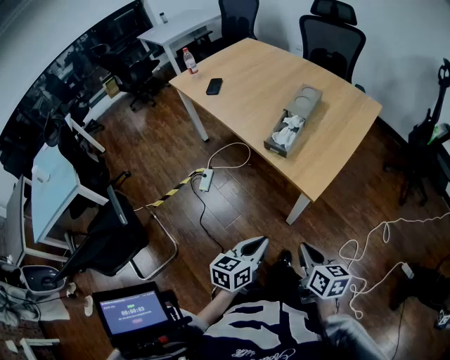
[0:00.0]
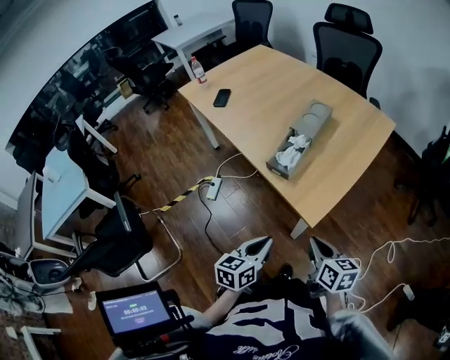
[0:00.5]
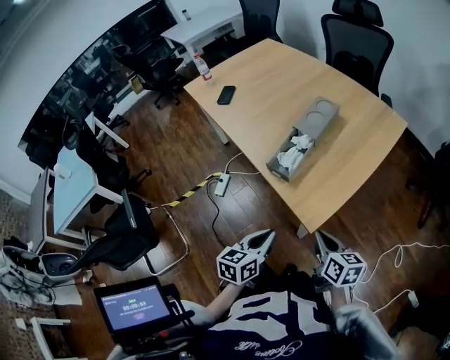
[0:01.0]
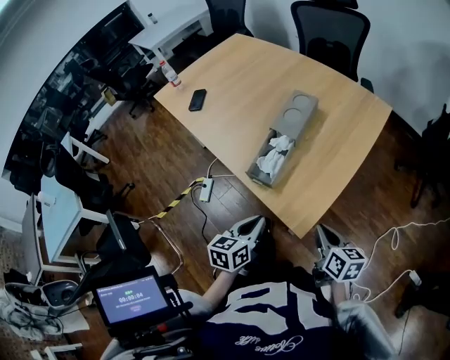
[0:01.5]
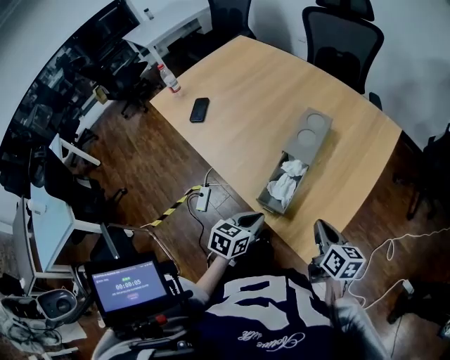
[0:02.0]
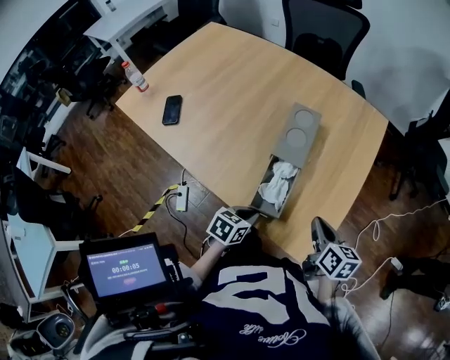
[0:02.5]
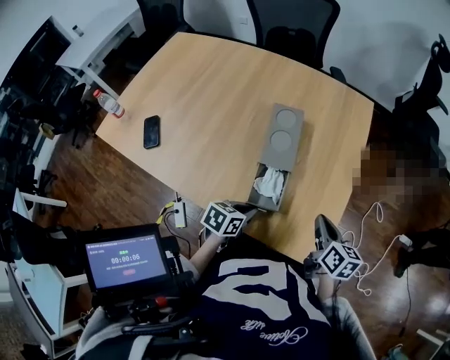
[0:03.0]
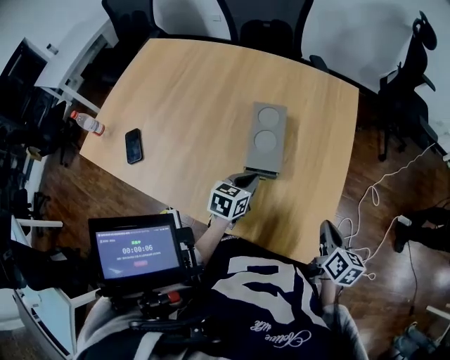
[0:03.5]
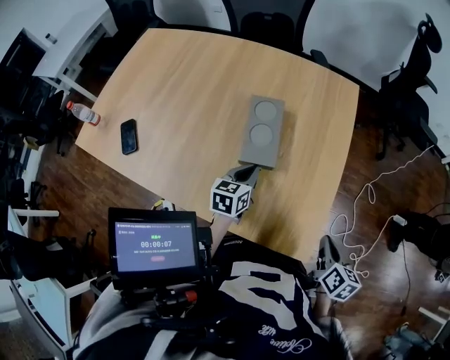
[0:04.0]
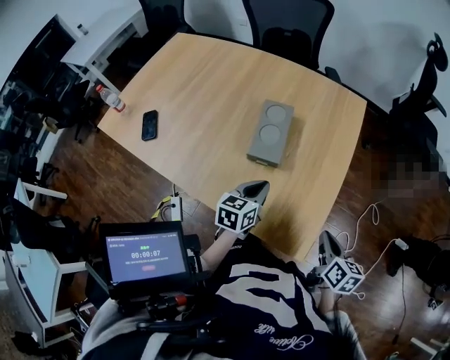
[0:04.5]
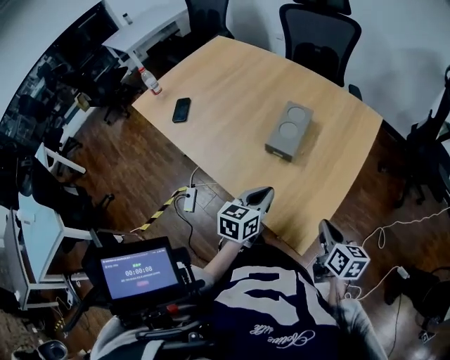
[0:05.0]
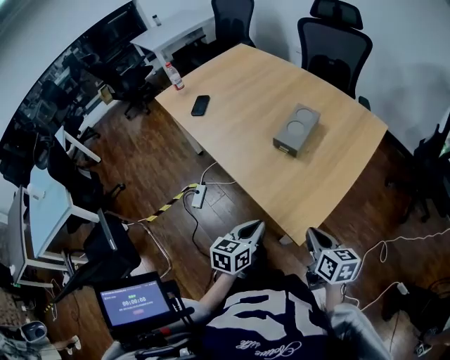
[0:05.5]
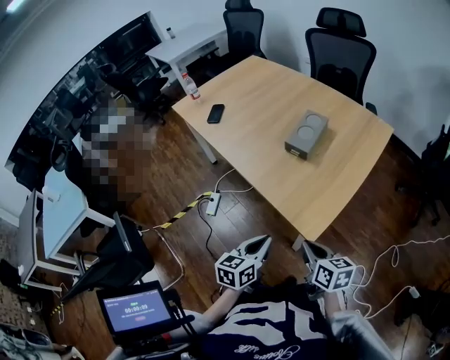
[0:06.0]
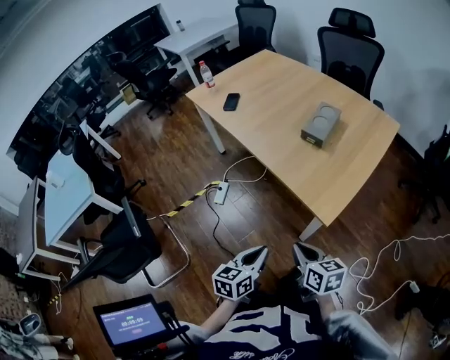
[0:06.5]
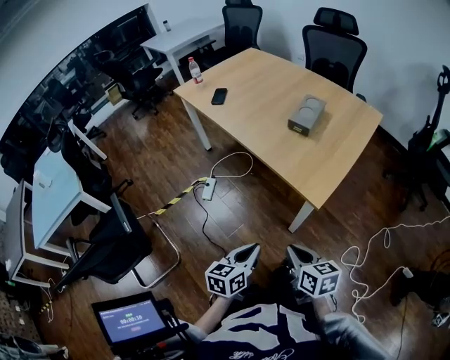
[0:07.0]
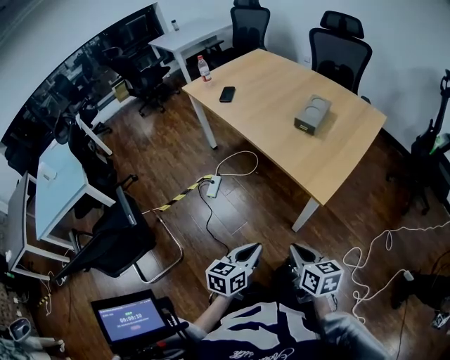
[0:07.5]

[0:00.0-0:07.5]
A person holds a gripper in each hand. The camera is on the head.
0:00.0 to 0:02.0: The grippers both shift forward by about 35 cm.
0:02.0 to 0:04.0: The right gripper shifts by approximately 10 cm, and turns by about 40 degrees. Meanwhile the left gripper ends up about 25 cm from where it was.
0:04.0 to 0:05.5: The left gripper ends up some 30 cm from where it was, and swivels roughly 30 degrees. Meanwhile the right gripper ends up about 10 cm from where it was, and changes its angle by roughly 50 degrees.
0:05.5 to 0:07.5: The grippers both shift backward and to the left by roughly 30 cm.

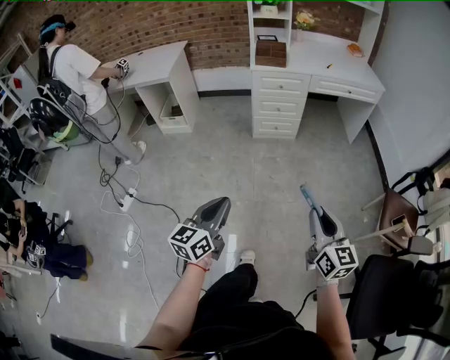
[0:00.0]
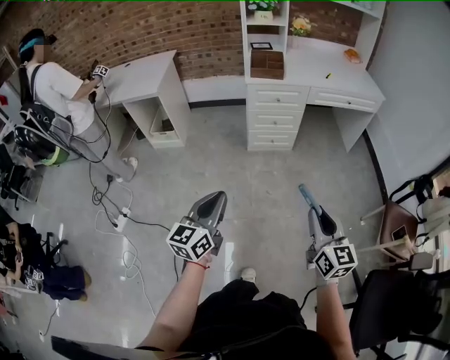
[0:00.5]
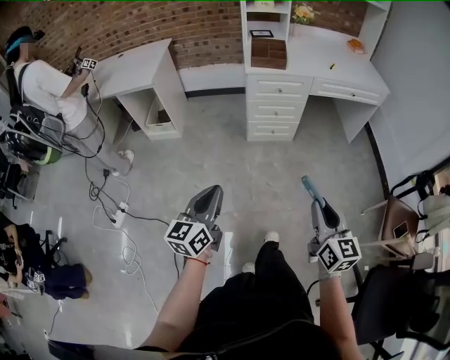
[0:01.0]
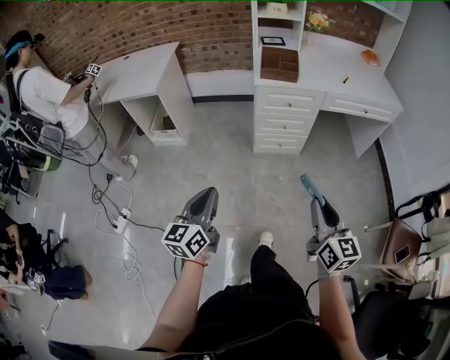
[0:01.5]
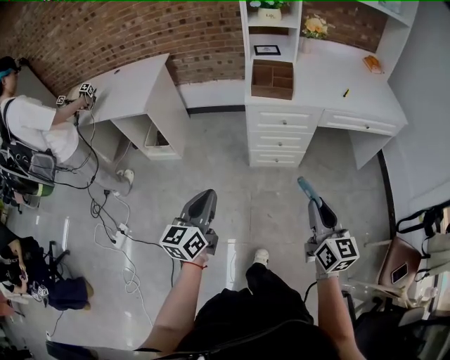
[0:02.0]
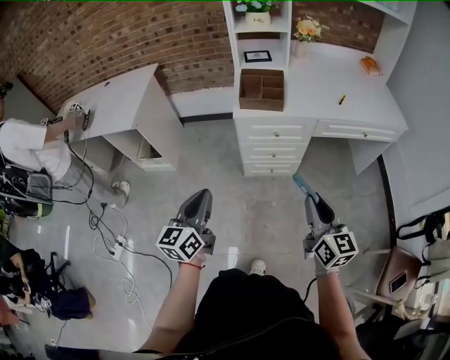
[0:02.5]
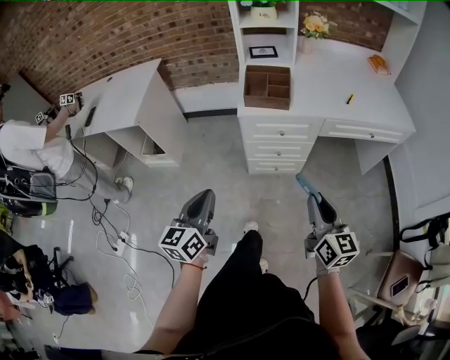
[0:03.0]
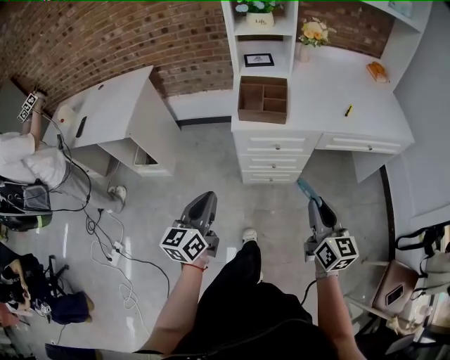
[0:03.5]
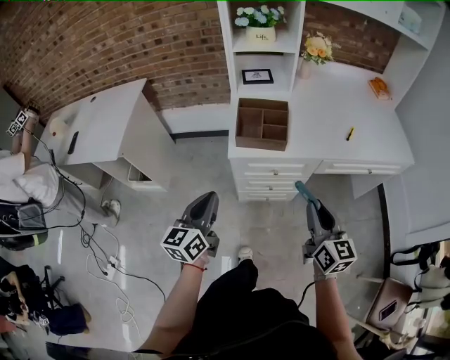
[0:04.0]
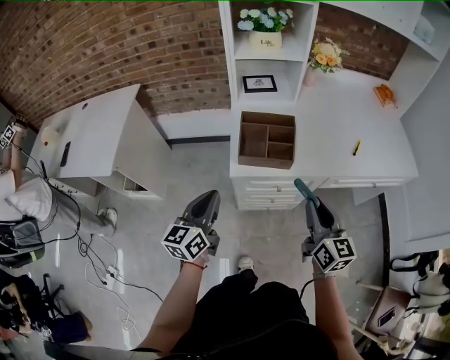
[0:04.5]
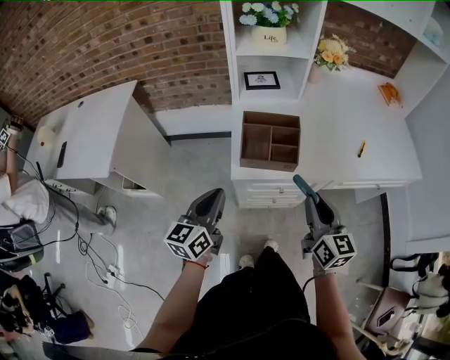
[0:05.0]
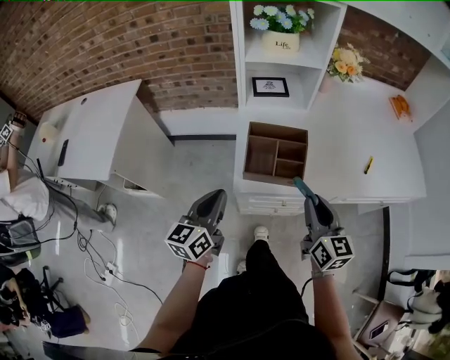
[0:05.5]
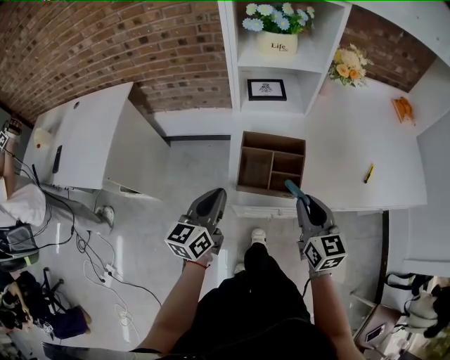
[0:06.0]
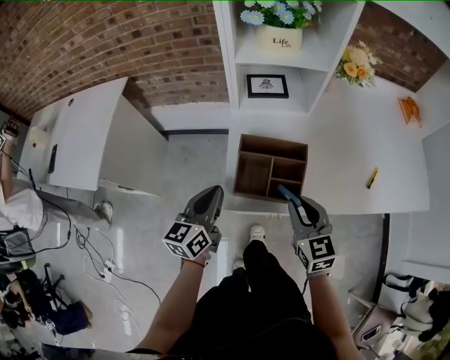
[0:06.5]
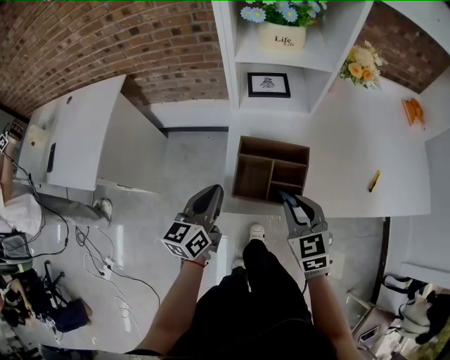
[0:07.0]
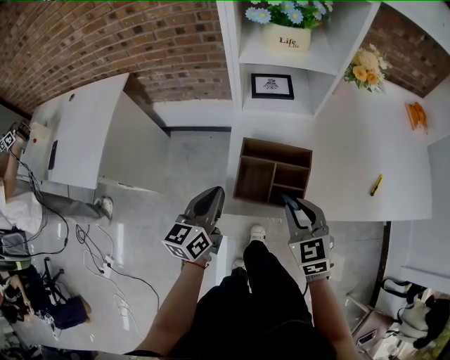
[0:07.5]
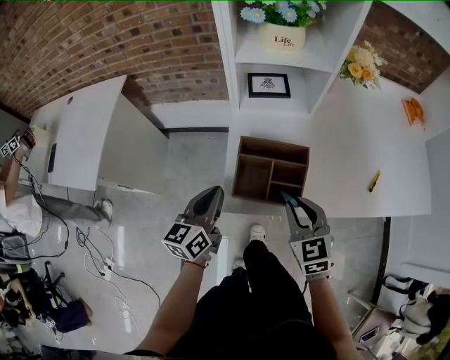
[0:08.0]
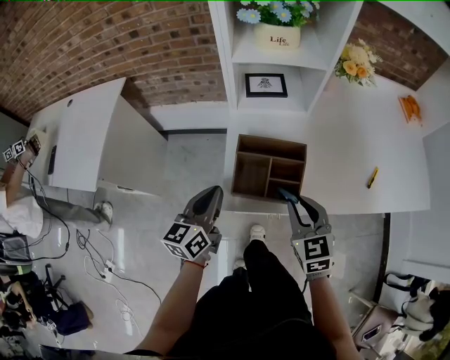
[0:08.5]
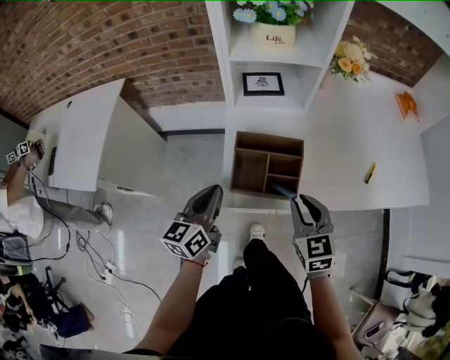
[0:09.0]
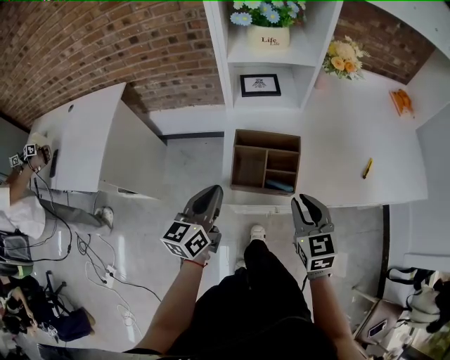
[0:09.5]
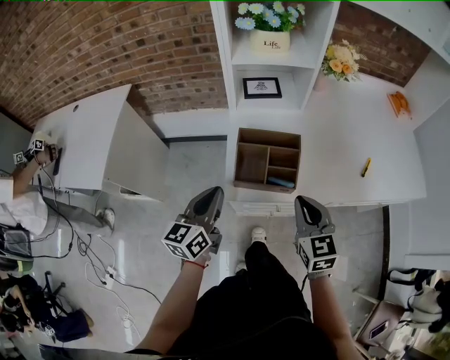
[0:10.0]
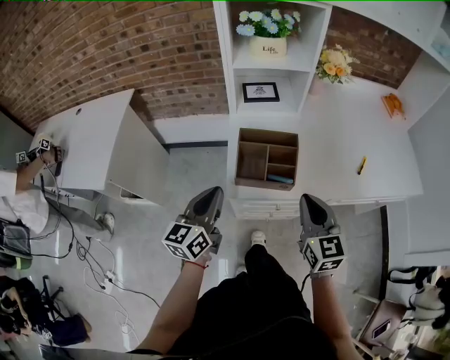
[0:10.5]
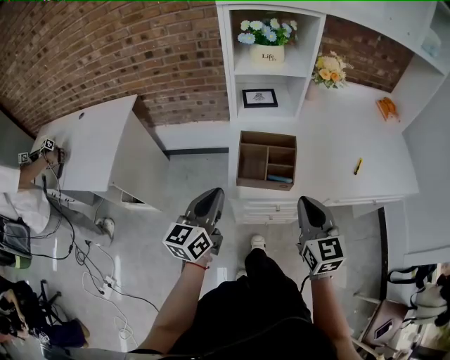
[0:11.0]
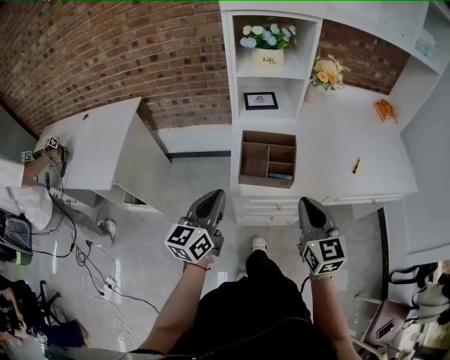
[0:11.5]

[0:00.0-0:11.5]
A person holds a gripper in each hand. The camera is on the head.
0:00.0 to 0:02.0: Both grippers travel together forward, some 40 cm.
0:02.0 to 0:04.0: The grippers both shift forward by some 30 cm.
0:04.0 to 0:06.0: Both grippers travel together forward, approximately 20 cm.
0:06.0 to 0:07.5: The left gripper shifts by roughly 5 cm, while the right gripper ends up approximately 5 cm from where it was, and turns by about 30 degrees.
0:07.5 to 0:09.5: The right gripper changes place by roughly 5 cm.
0:09.5 to 0:11.5: The grippers both shift backward and upward by roughly 10 cm.

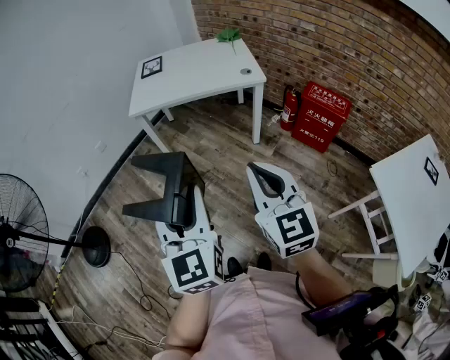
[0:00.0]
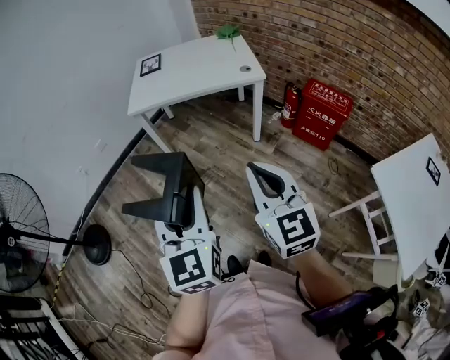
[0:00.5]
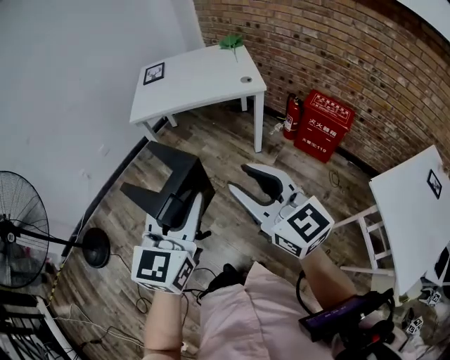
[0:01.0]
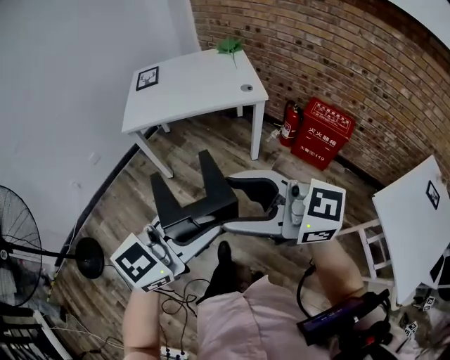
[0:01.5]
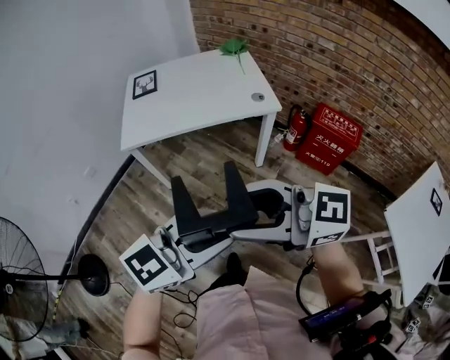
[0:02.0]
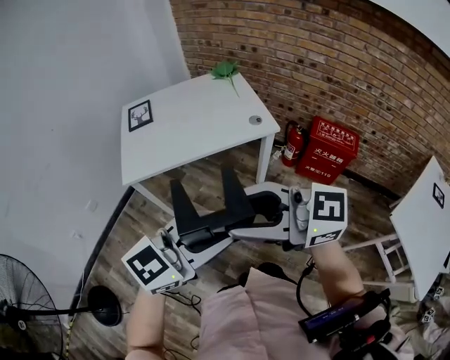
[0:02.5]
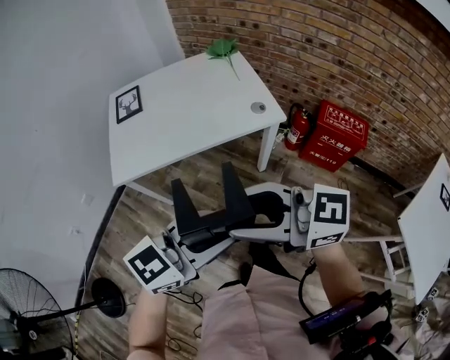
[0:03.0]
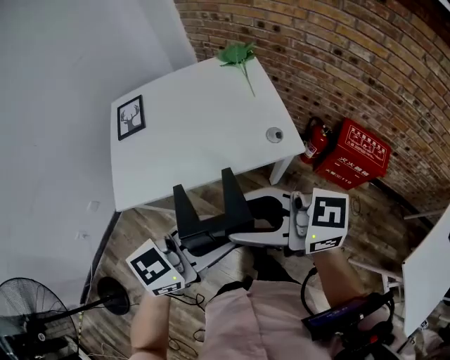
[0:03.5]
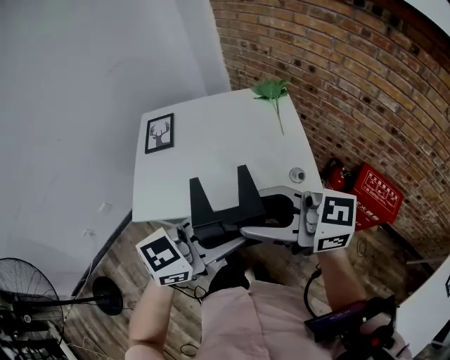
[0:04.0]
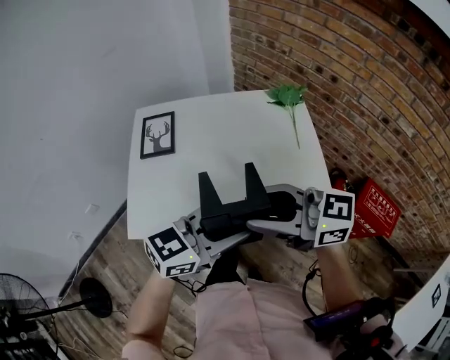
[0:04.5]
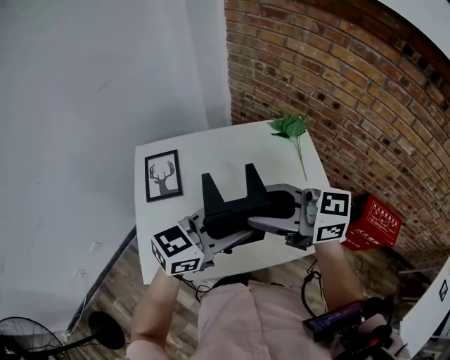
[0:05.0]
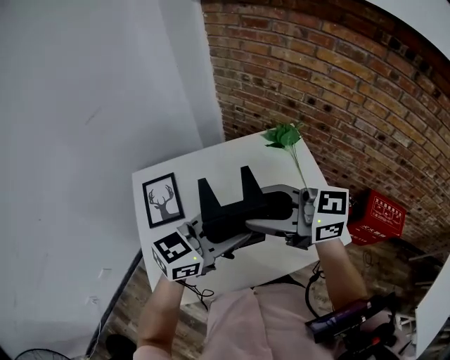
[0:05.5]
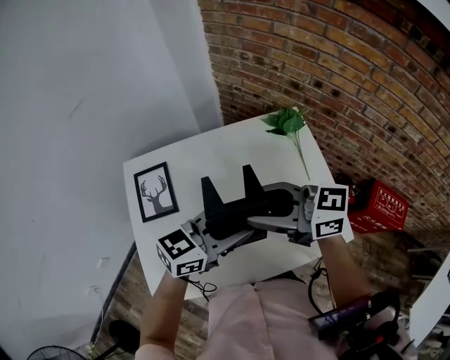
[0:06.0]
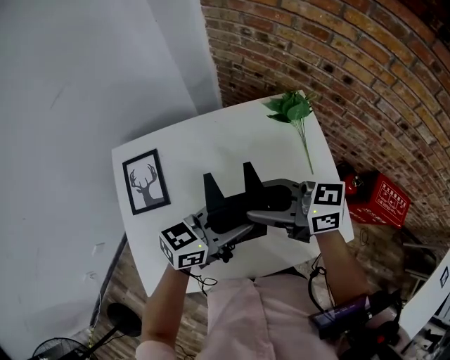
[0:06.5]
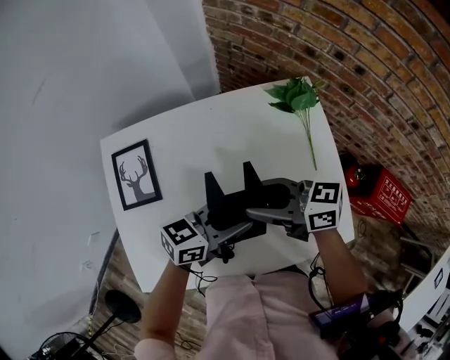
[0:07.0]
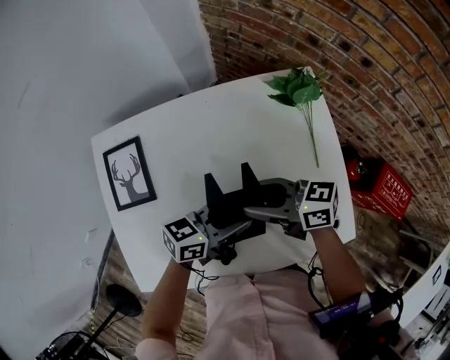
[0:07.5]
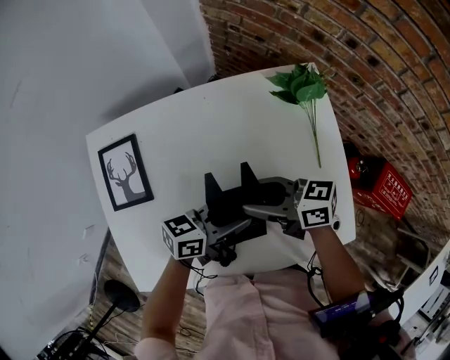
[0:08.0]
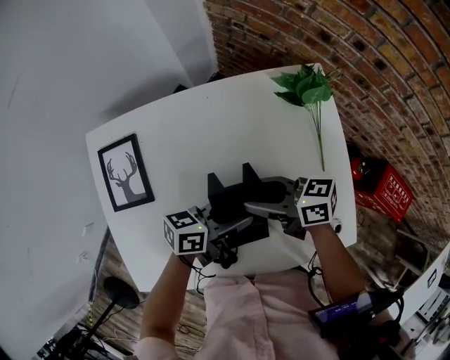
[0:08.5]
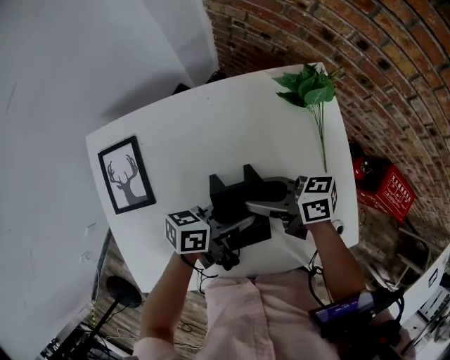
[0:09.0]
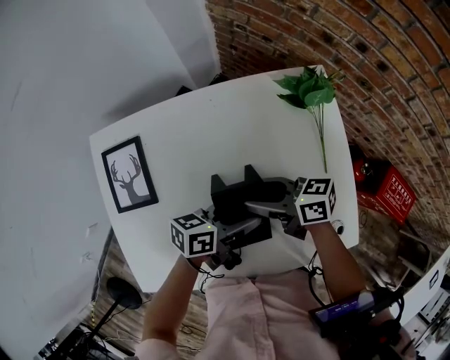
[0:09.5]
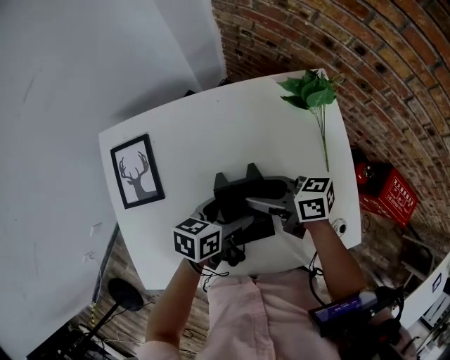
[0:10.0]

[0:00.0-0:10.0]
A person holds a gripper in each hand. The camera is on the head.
0:00.0 to 0:02.0: The right gripper changes place by approximately 20 cm, rotates roughly 60 degrees, and opens its fingers, while the left gripper moves some 15 cm, and rotates roughly 70 degrees.
0:02.0 to 0:04.0: The left gripper moves about 40 cm. The right gripper shifts by some 40 cm.
0:04.0 to 0:06.0: The left gripper ends up roughly 35 cm from where it was. The right gripper changes place by roughly 35 cm.
0:06.0 to 0:08.0: Both grippers travel together downward, some 20 cm. The left gripper turns by about 30 degrees. Meanwhile the right gripper changes its angle by approximately 30 degrees.
0:08.0 to 0:10.0: The left gripper shifts by some 5 cm, changes its angle by about 30 degrees, and opens its fingers.
